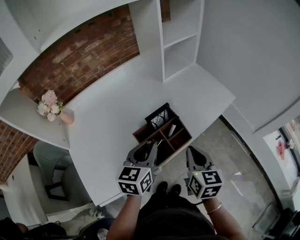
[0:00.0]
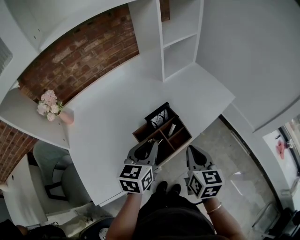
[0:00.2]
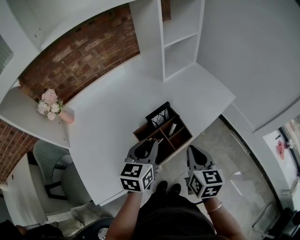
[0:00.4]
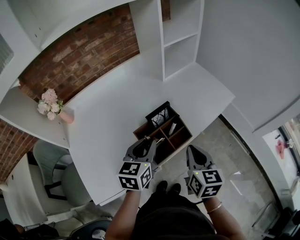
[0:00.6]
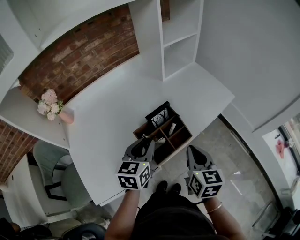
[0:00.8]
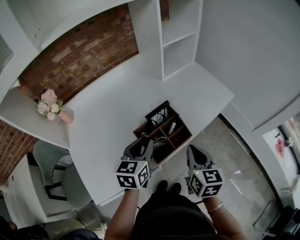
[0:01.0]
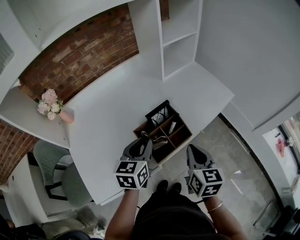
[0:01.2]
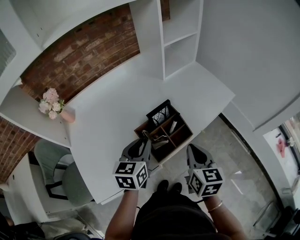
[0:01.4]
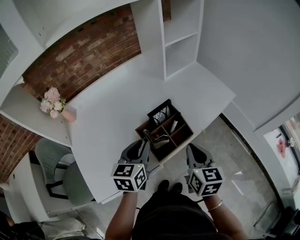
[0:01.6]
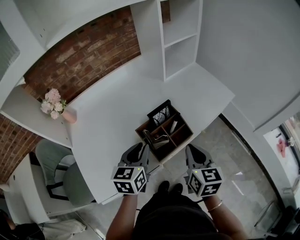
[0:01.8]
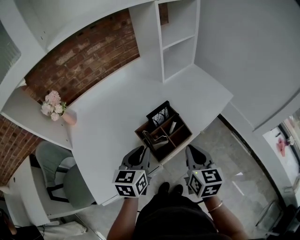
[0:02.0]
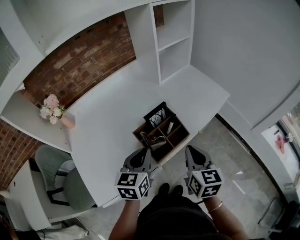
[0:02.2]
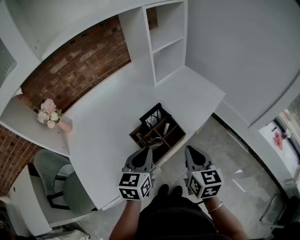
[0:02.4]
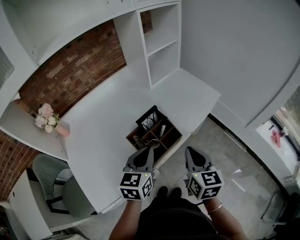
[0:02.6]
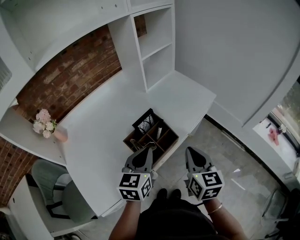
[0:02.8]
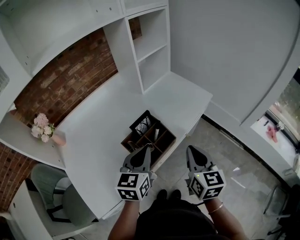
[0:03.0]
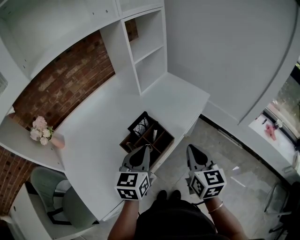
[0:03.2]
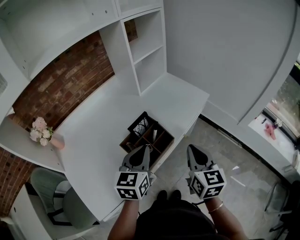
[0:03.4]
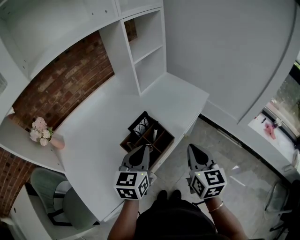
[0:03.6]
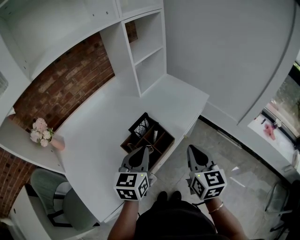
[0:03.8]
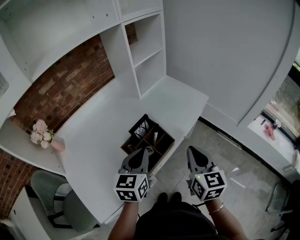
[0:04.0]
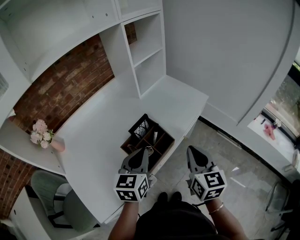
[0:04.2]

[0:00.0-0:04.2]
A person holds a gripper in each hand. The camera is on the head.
0:00.0 to 0:01.4: The grippers move only a little.
0:01.4 to 0:02.8: The right gripper moves about 5 cm, while the left gripper is displaced to the right by roughly 5 cm.
0:02.8 to 0:04.2: The grippers make only small movements.

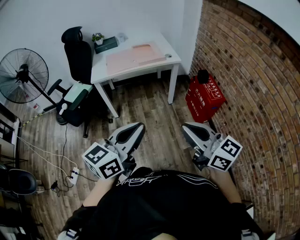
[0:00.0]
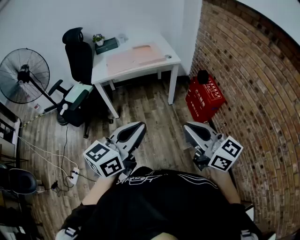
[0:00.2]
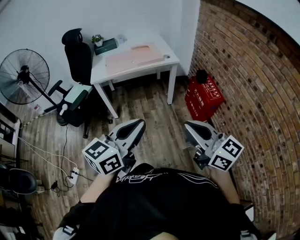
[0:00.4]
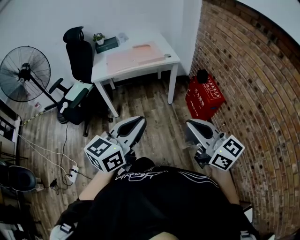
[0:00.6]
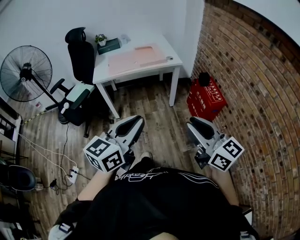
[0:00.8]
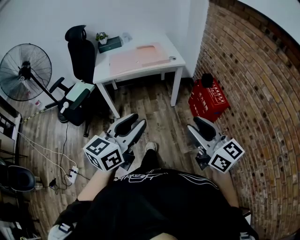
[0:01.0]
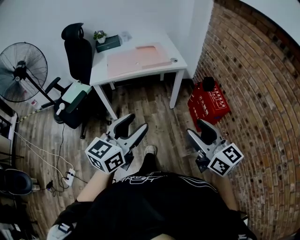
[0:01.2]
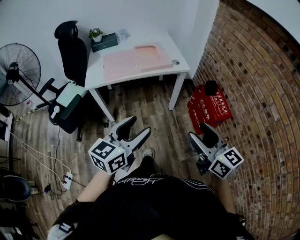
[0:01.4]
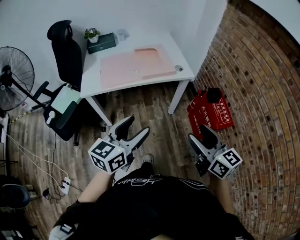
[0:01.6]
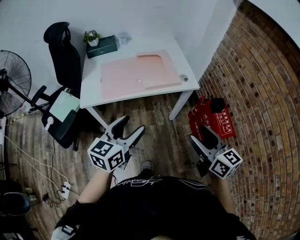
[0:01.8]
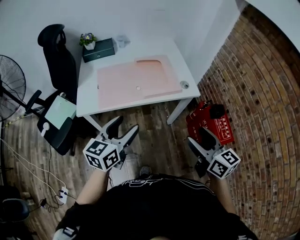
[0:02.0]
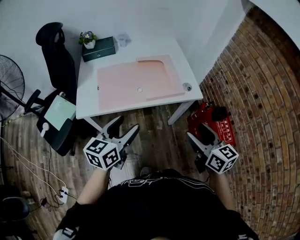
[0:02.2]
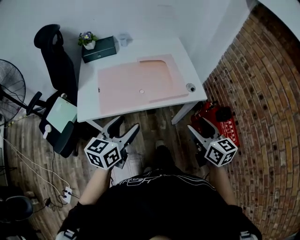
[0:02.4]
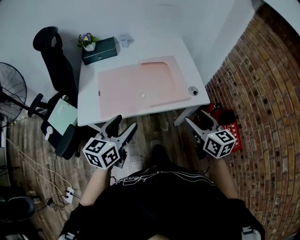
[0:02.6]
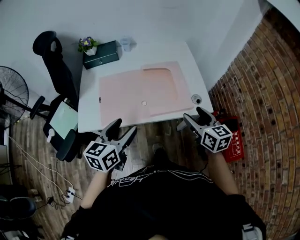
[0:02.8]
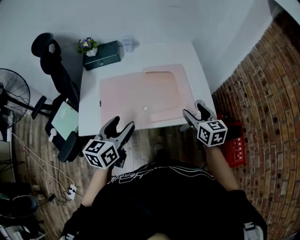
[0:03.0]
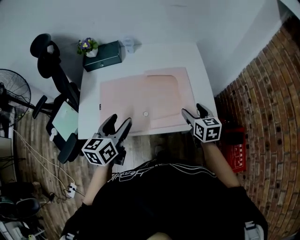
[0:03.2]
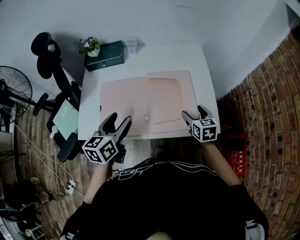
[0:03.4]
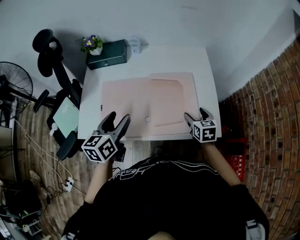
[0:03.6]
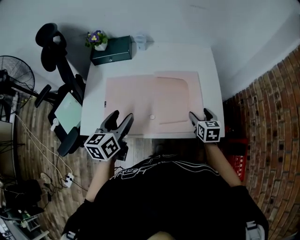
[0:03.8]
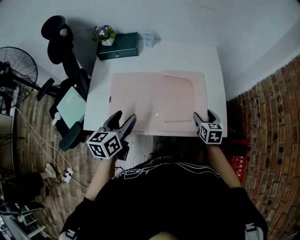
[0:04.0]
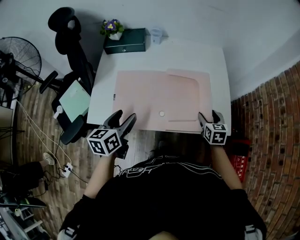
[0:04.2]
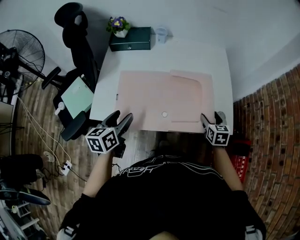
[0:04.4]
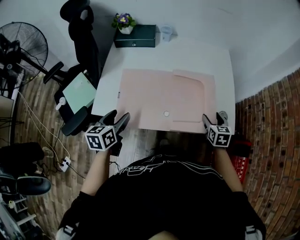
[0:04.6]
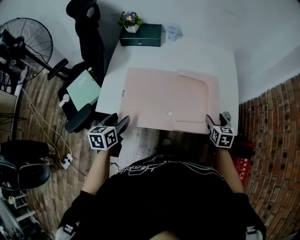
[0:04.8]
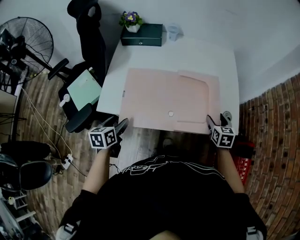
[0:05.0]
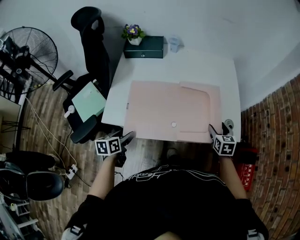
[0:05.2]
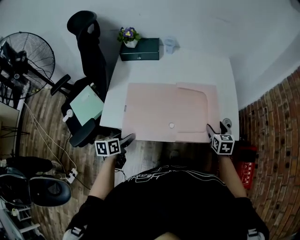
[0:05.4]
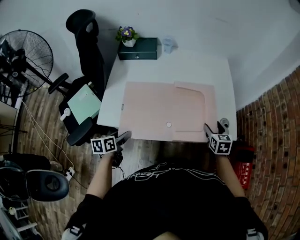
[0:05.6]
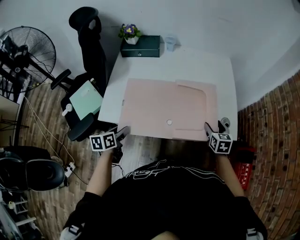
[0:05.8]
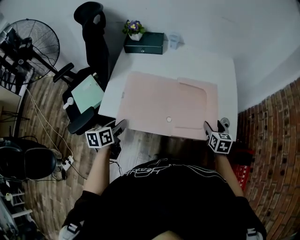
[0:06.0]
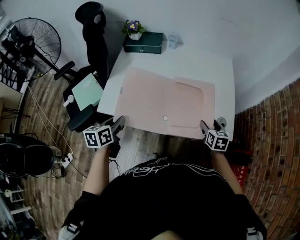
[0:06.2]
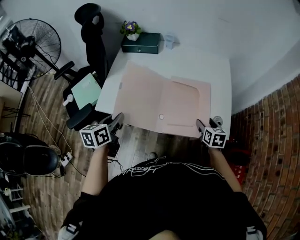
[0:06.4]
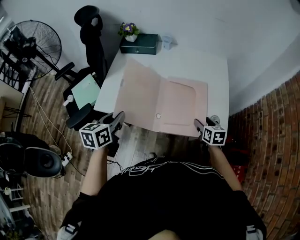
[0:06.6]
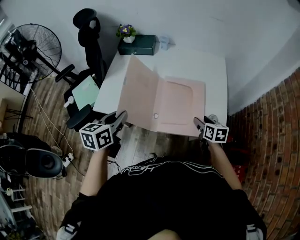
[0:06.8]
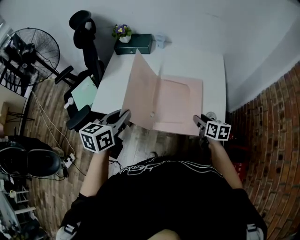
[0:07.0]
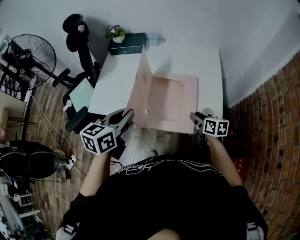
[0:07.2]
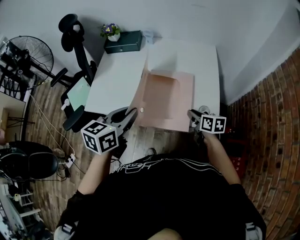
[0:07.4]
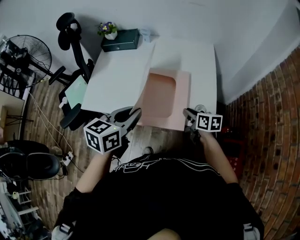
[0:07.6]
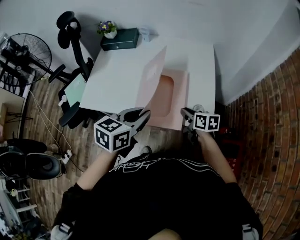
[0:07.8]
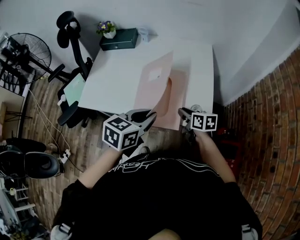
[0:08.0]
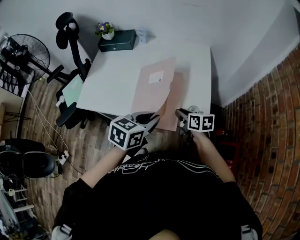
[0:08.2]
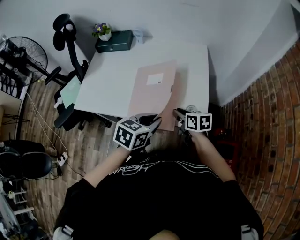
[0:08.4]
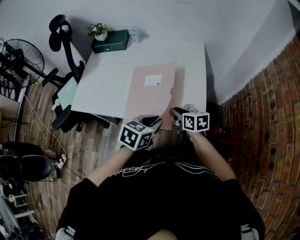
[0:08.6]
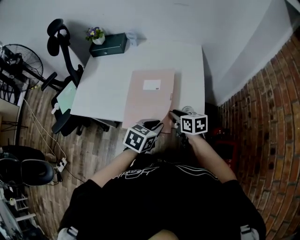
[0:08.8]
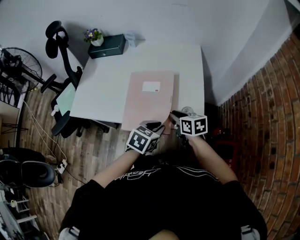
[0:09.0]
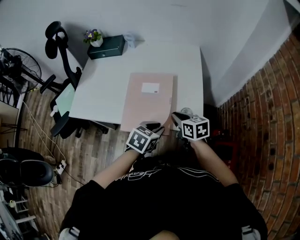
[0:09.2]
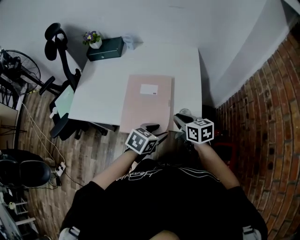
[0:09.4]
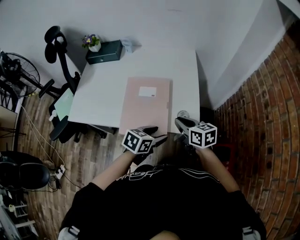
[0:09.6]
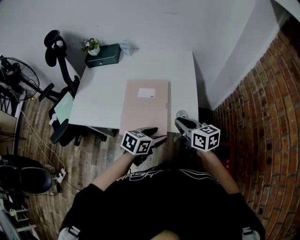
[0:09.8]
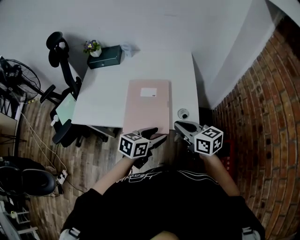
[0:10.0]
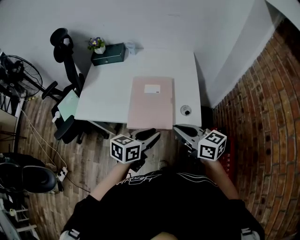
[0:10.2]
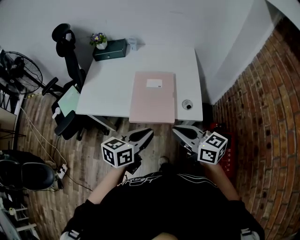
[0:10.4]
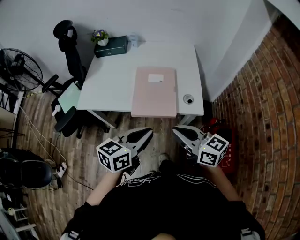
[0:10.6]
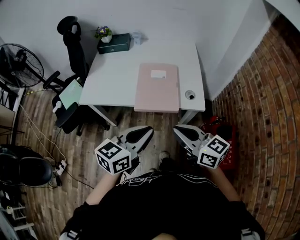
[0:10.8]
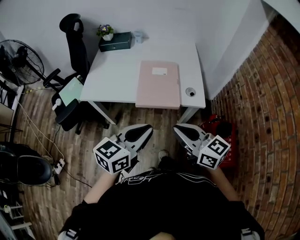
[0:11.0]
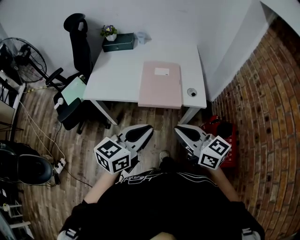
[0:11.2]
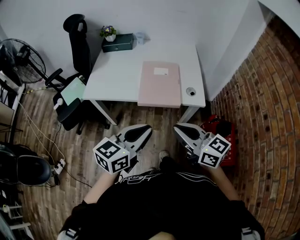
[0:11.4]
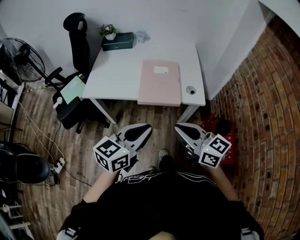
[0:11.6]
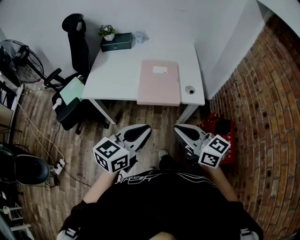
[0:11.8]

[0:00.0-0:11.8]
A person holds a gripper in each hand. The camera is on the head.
0:00.0 to 0:01.4: The two grippers go approximately 20 cm forward. The left gripper opens its fingers, while the right gripper opens up.
0:01.4 to 0:03.0: The two grippers travel together, forward, some 50 cm. The left gripper changes its angle by about 20 degrees. Meanwhile the right gripper turns by some 20 degrees.
0:03.0 to 0:04.4: The right gripper heads downward and forward, covering roughly 10 cm. The left gripper is displaced to the left and downward by some 15 cm.
0:04.4 to 0:06.0: The left gripper travels downward, backward and to the left by some 10 cm, and closes.
0:06.0 to 0:07.4: The left gripper heads to the right and upward, covering approximately 30 cm, and changes its angle by roughly 20 degrees. Meanwhile the right gripper swivels some 30 degrees, and closes up.
0:07.4 to 0:08.8: The left gripper heads to the right and downward, covering some 25 cm, and turns by roughly 20 degrees.
0:08.8 to 0:10.4: The right gripper shifts roughly 25 cm upward and backward, and turns by about 30 degrees; the left gripper travels upward, backward and to the left by approximately 15 cm, turns by roughly 30 degrees, and opens and closes again.
0:10.4 to 0:11.8: The left gripper moves backward, upward and to the left, about 15 cm. Meanwhile the right gripper heads backward, covering roughly 10 cm.

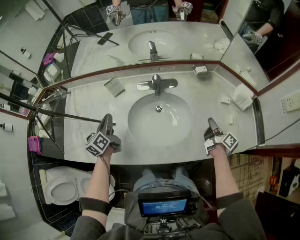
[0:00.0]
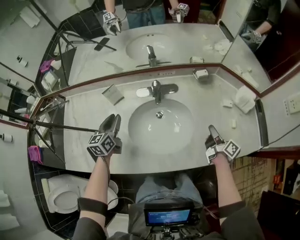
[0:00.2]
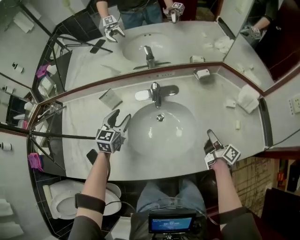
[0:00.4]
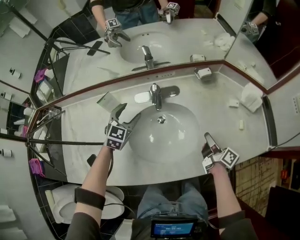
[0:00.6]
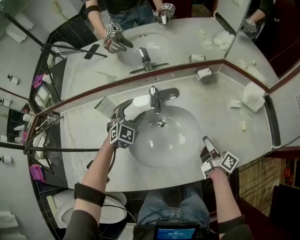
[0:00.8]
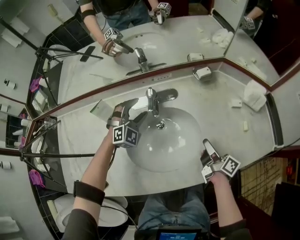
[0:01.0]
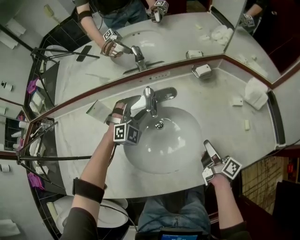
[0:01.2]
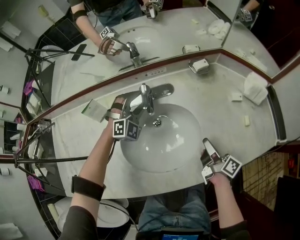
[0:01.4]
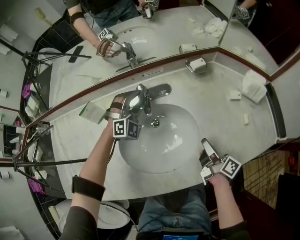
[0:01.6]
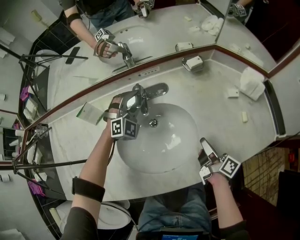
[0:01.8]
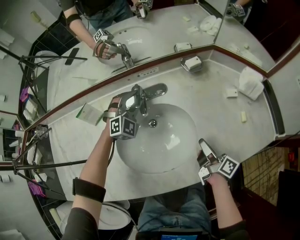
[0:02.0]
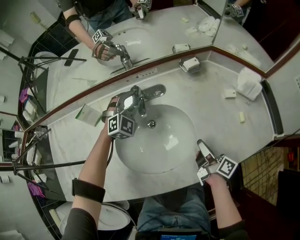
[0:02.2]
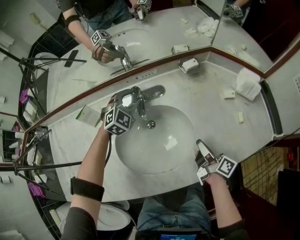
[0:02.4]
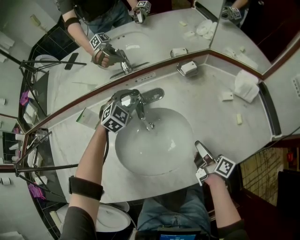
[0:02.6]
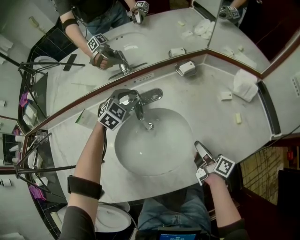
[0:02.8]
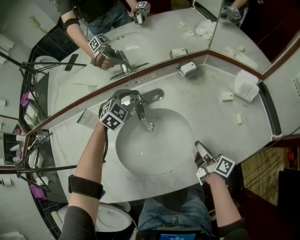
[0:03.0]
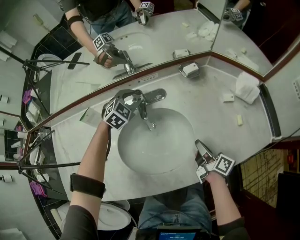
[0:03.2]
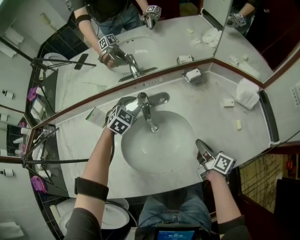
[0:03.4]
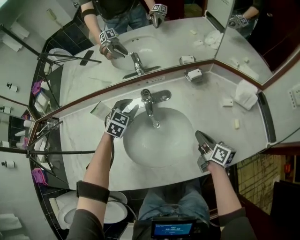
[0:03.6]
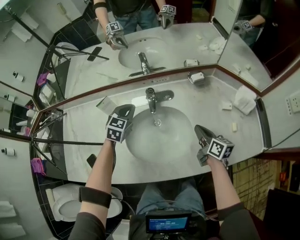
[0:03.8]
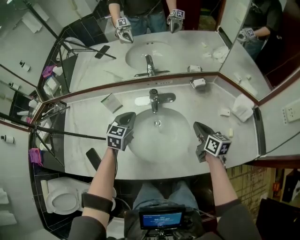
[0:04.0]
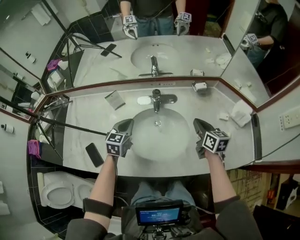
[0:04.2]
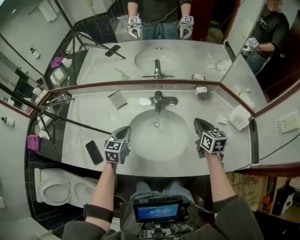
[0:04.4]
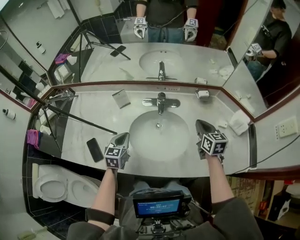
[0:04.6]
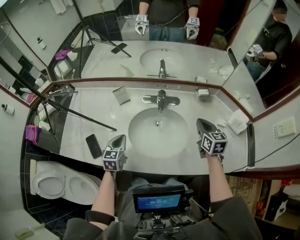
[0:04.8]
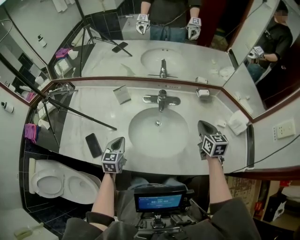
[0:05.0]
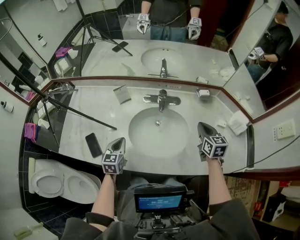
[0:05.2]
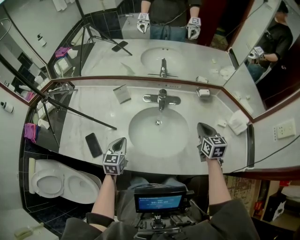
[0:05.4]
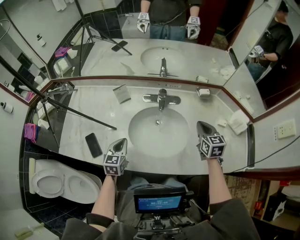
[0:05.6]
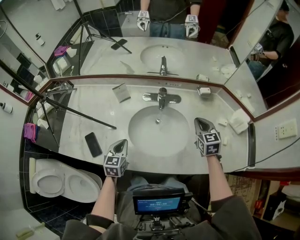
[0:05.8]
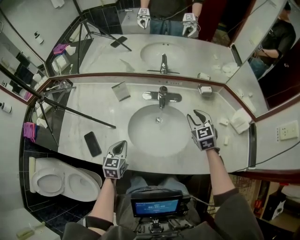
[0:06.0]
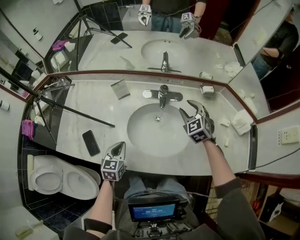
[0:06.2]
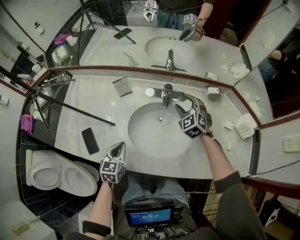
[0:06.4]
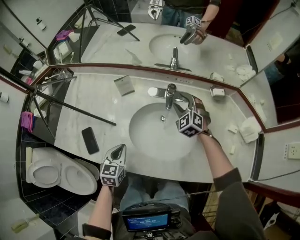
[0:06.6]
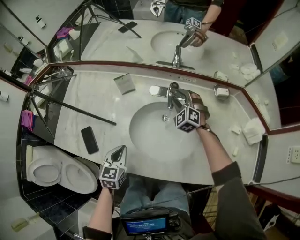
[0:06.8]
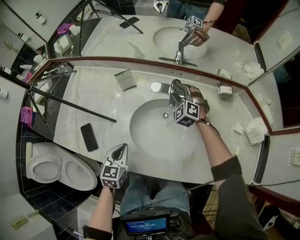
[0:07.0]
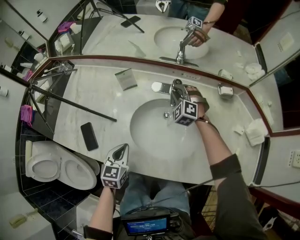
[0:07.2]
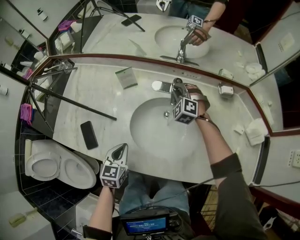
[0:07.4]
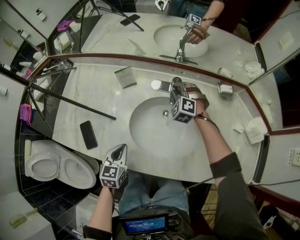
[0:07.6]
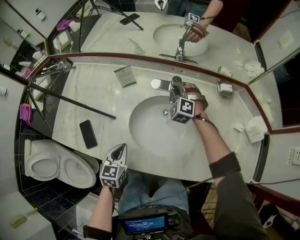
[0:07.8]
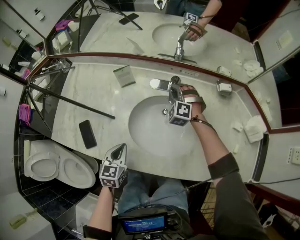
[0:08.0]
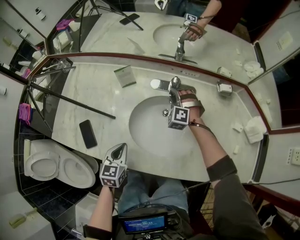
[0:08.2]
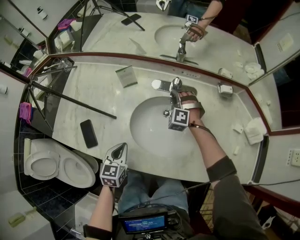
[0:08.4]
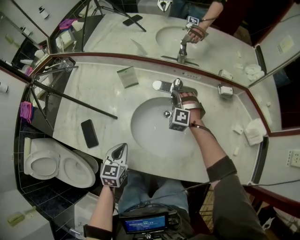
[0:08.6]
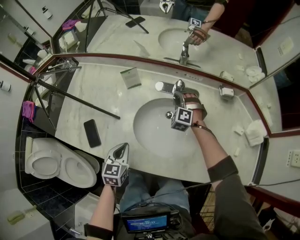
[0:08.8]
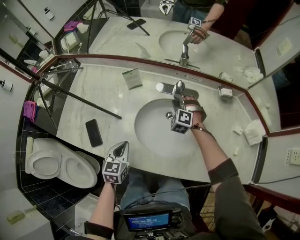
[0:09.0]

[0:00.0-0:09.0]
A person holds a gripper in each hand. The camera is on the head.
0:00.0 to 0:01.6: The left gripper goes about 35 cm to the right, forward and downward, twists about 100 degrees clockwise, seen from behind, and opens up, while the right gripper goes roughly 10 cm to the left and downward.
0:01.6 to 0:03.0: The left gripper rotates roughly 30 degrees.
0:03.0 to 0:04.4: The left gripper shifts approximately 30 cm backward, to the left and upward, twists about 50 degrees counterclockwise, seen from behind, and closes; the right gripper shifts roughly 15 cm upward and forward, and rolls counterclockwise, seen from behind, by roughly 60 degrees.
0:04.4 to 0:06.0: The right gripper travels to the left by approximately 5 cm, changes its angle by approximately 40 degrees, and opens up; the left gripper shifts some 10 cm backward.
0:06.0 to 0:07.6: The right gripper moves forward, to the left and downward, some 25 cm, rotates around the line of its fingers by roughly 50 degrees, counterclockwise from behind, and opens, then closes once more.
0:07.6 to 0:09.0: The right gripper is displaced backward by roughly 5 cm.
